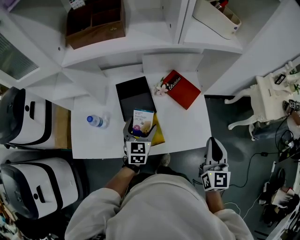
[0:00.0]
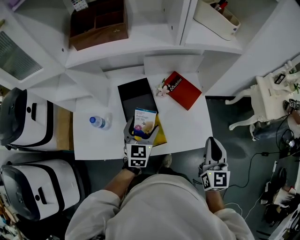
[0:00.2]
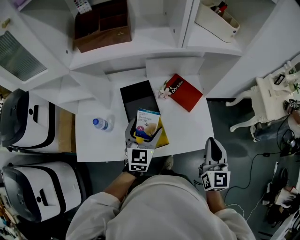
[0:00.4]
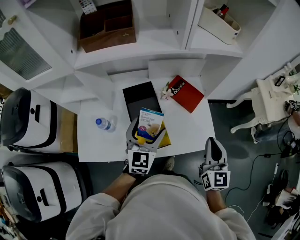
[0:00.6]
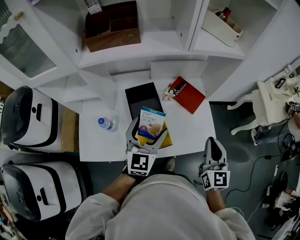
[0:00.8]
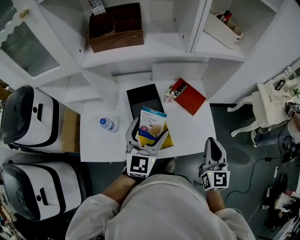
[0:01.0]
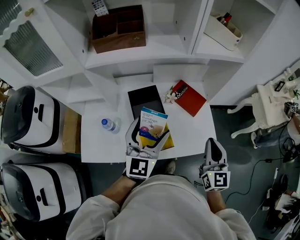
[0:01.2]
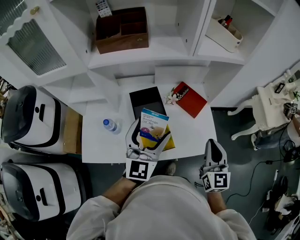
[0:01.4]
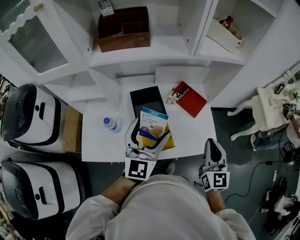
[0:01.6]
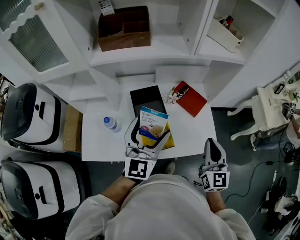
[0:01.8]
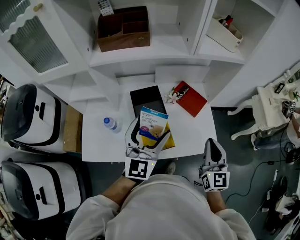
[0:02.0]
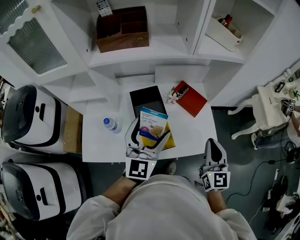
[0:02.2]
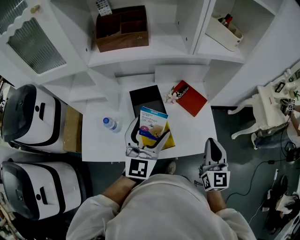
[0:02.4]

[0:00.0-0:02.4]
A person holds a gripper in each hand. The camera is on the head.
0:00.0 to 0:01.2: The left gripper is displaced upward by about 20 cm, and changes its angle by roughly 20 degrees, while the right gripper shifts about 5 cm to the left.
0:01.2 to 0:02.4: There are only small adjustments of the grippers.

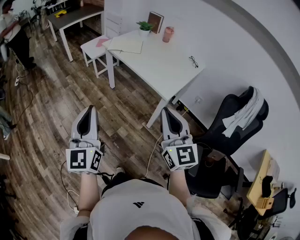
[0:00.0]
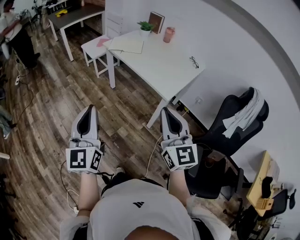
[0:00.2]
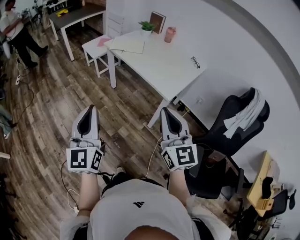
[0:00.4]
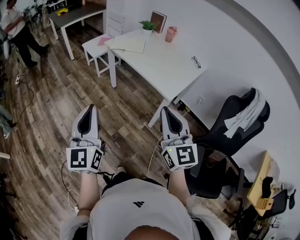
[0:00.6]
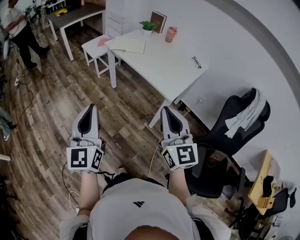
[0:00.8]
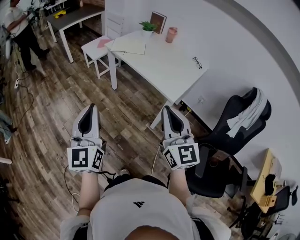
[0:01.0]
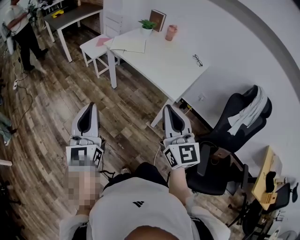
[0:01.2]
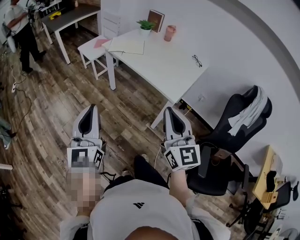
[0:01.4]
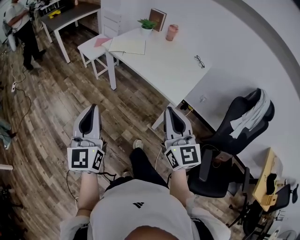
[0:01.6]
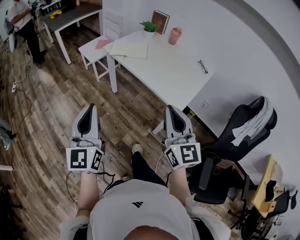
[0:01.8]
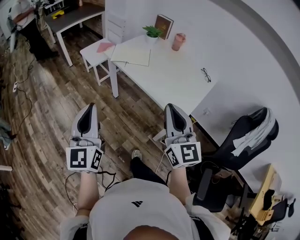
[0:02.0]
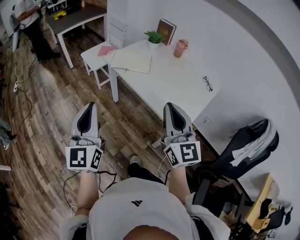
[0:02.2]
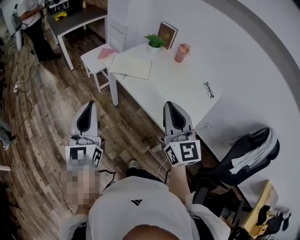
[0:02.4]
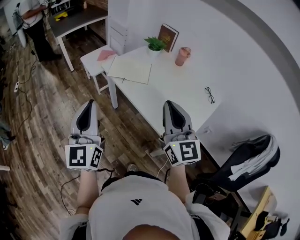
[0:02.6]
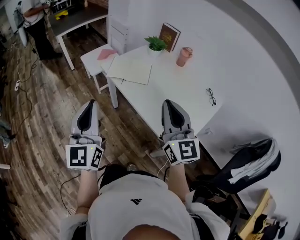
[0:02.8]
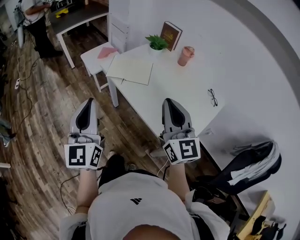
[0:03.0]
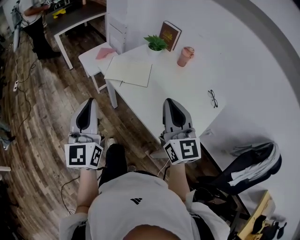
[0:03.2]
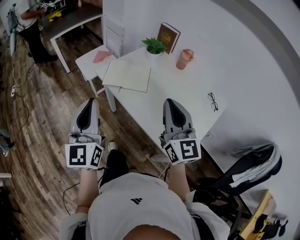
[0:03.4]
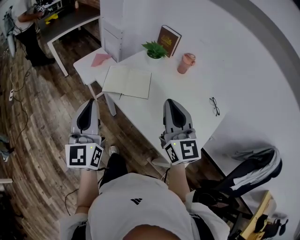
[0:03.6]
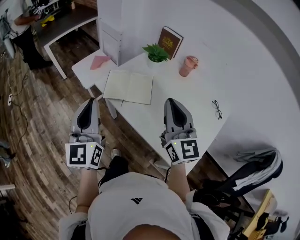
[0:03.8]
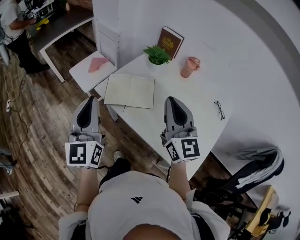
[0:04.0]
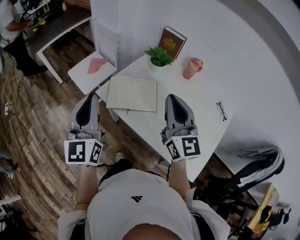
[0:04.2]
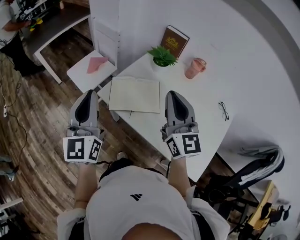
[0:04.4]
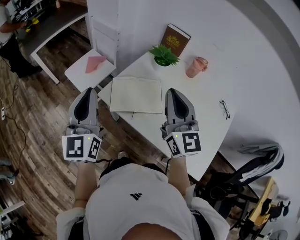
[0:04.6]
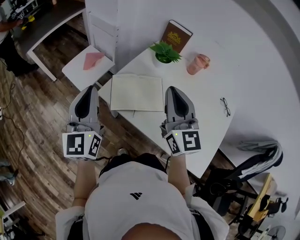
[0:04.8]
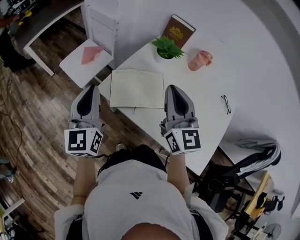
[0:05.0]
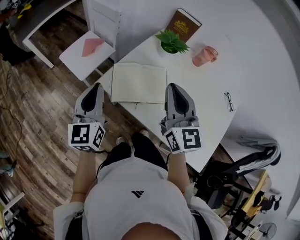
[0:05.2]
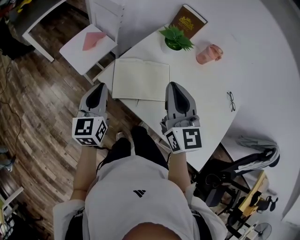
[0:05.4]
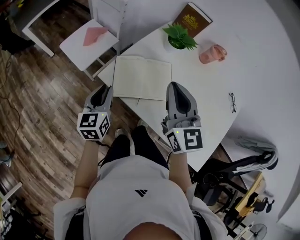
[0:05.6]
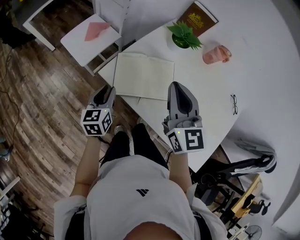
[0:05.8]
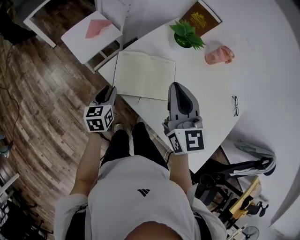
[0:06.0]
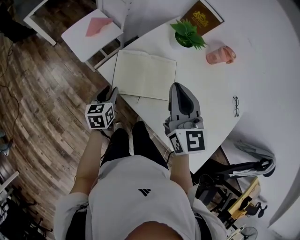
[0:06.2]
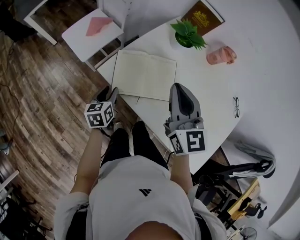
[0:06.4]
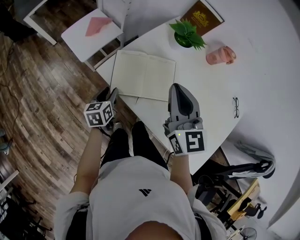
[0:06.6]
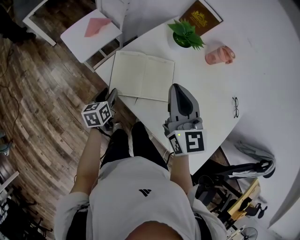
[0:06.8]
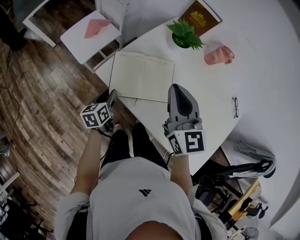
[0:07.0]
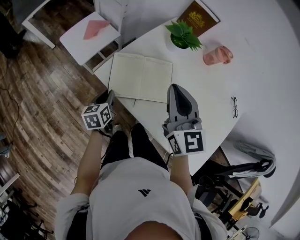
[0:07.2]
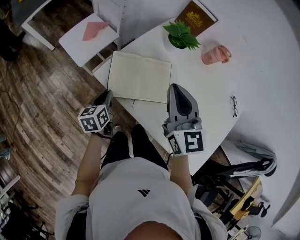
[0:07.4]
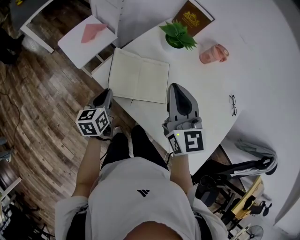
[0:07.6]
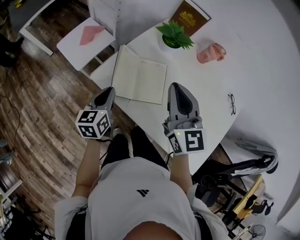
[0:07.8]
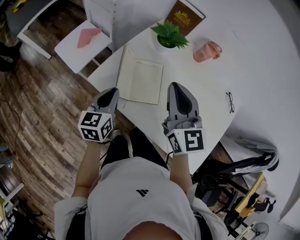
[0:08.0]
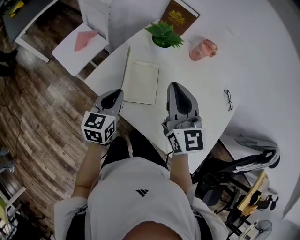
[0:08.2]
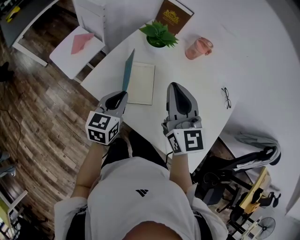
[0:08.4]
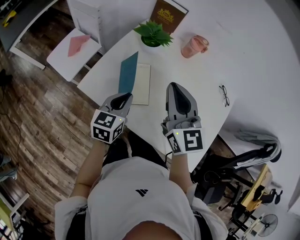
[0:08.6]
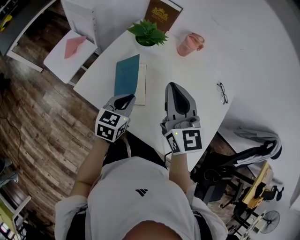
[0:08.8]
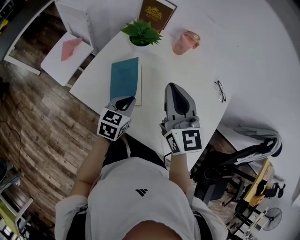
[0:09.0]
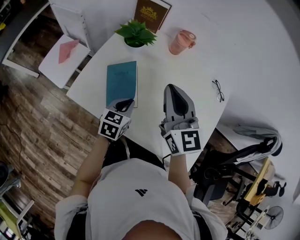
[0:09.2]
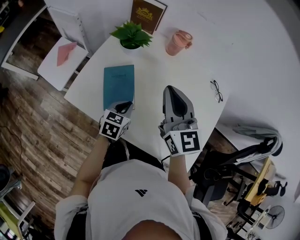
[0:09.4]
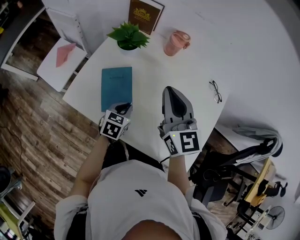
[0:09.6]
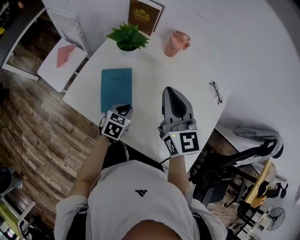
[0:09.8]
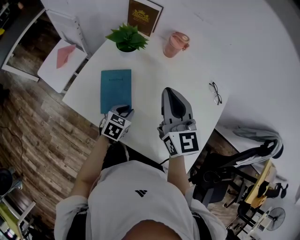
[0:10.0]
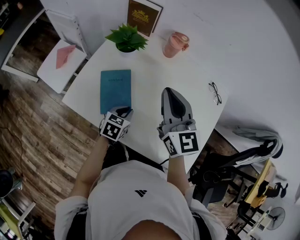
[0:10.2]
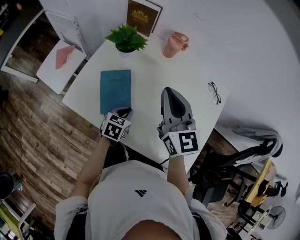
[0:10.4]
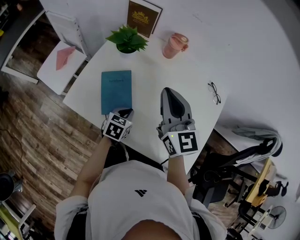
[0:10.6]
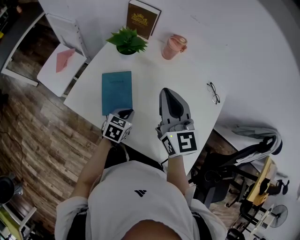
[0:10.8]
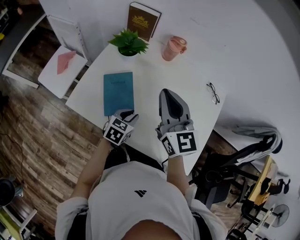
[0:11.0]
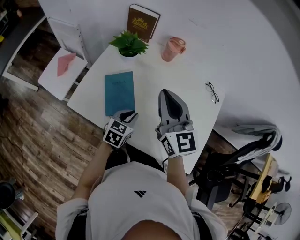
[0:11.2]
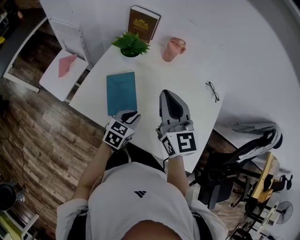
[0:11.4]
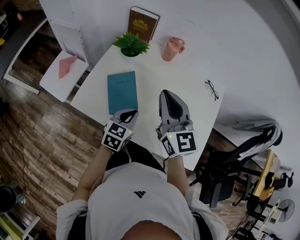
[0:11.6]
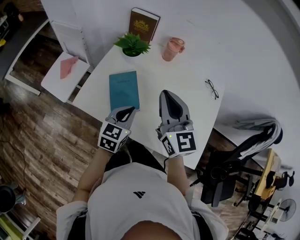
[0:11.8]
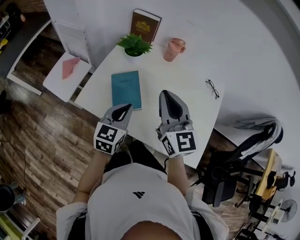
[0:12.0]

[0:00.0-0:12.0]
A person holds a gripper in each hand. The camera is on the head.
0:00.0 to 0:01.6: Both grippers travel together forward, approximately 10 cm.
0:01.6 to 0:03.0: Both grippers travel together forward, roughly 30 cm.
0:03.0 to 0:04.4: The two grippers go approximately 25 cm forward.
0:04.4 to 0:06.0: The right gripper is displaced downward and forward by about 10 cm, while the left gripper shifts about 30 cm downward, tips its fingers downward by some 40 degrees, and opens its fingers.
0:06.0 to 0:07.6: The left gripper goes downward and returns, roughly 5 cm each way, and closes its fingers.
0:07.6 to 0:09.0: The right gripper is displaced to the right by approximately 10 cm, while the left gripper shifts about 20 cm to the right, and turns by some 40 degrees.
0:09.0 to 0:10.4: The right gripper shifts by roughly 5 cm. Meanwhile the left gripper goes approximately 10 cm downward.
0:10.4 to 0:12.0: The left gripper goes approximately 15 cm upward, and swivels some 30 degrees, while the right gripper shifts some 10 cm backward.

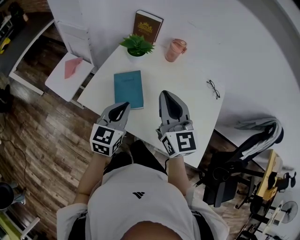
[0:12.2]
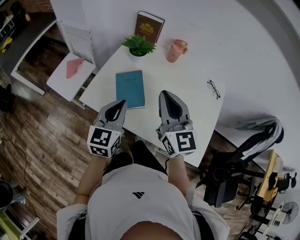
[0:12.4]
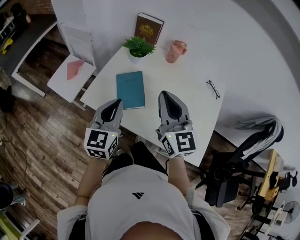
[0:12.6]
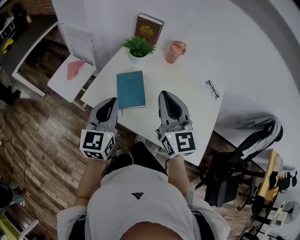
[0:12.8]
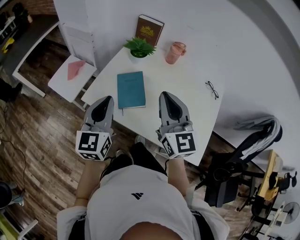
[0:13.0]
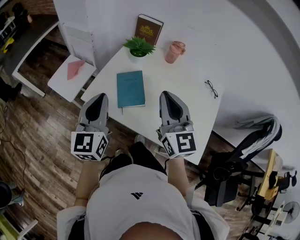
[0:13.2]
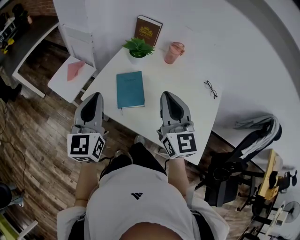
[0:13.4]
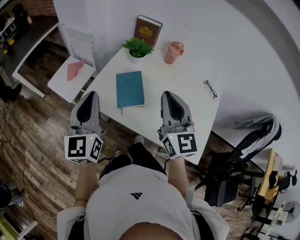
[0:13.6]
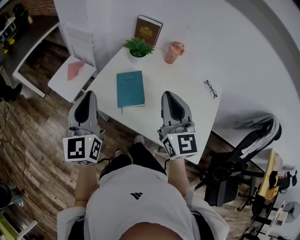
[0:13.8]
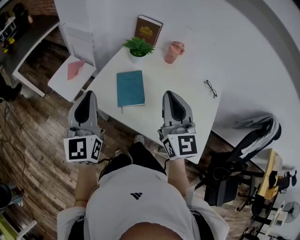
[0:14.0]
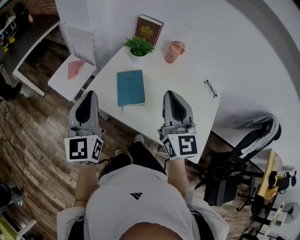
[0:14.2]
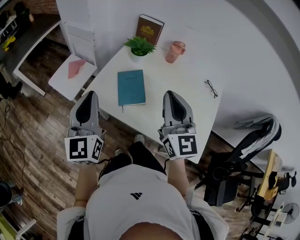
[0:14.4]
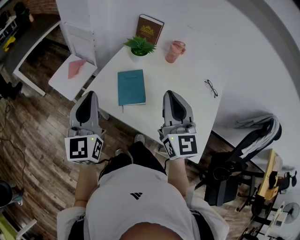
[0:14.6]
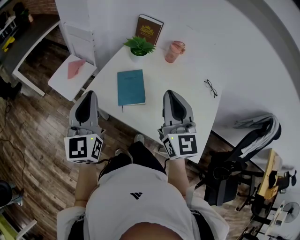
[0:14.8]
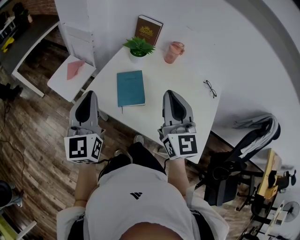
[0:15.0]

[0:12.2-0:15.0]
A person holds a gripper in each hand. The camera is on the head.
0:12.2 to 0:13.6: The right gripper moves roughly 5 cm. Meanwhile the left gripper shifts roughly 15 cm to the left and upward, and changes its angle by approximately 30 degrees.
0:13.6 to 0:15.0: The grippers stay close to where they were, moving slightly.

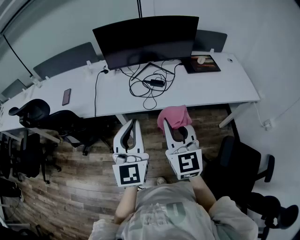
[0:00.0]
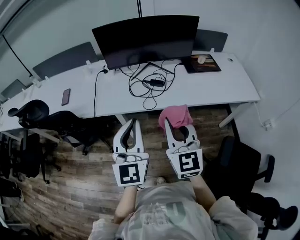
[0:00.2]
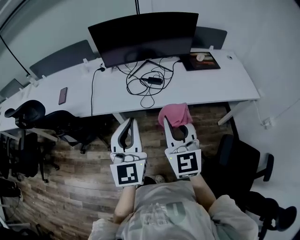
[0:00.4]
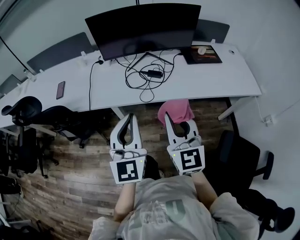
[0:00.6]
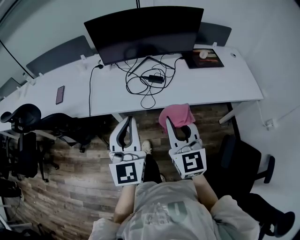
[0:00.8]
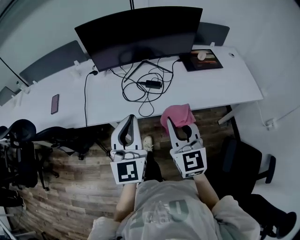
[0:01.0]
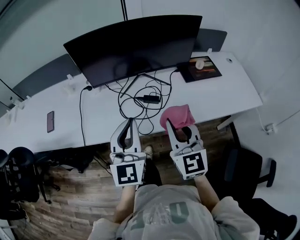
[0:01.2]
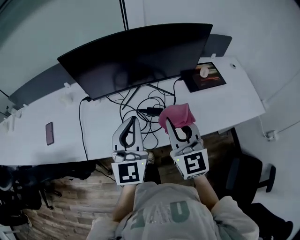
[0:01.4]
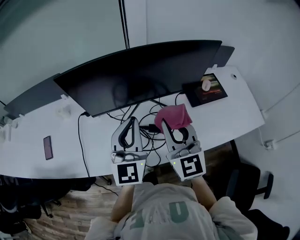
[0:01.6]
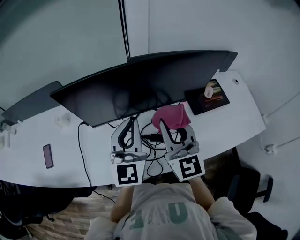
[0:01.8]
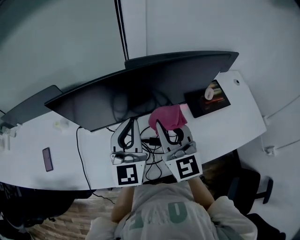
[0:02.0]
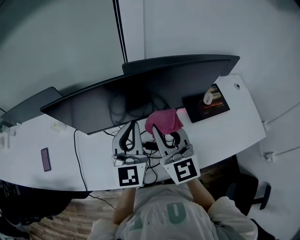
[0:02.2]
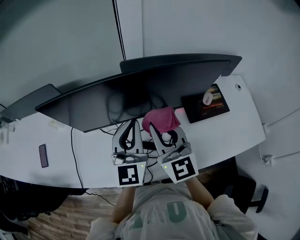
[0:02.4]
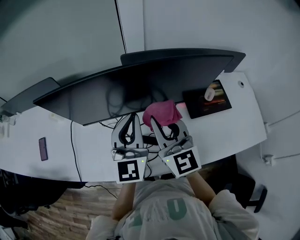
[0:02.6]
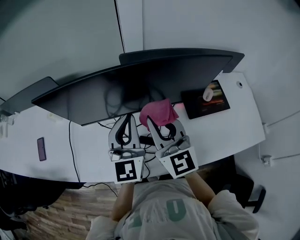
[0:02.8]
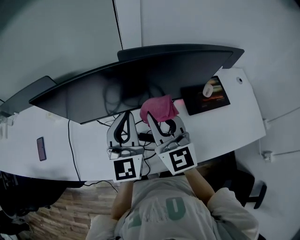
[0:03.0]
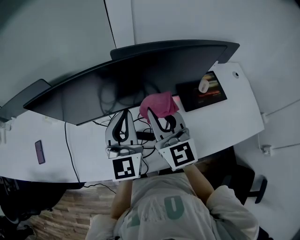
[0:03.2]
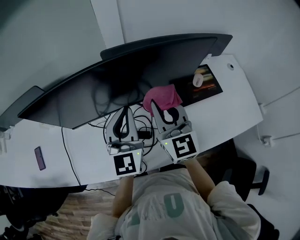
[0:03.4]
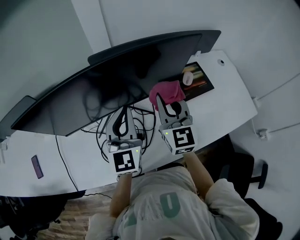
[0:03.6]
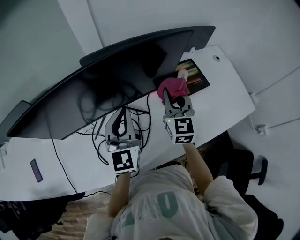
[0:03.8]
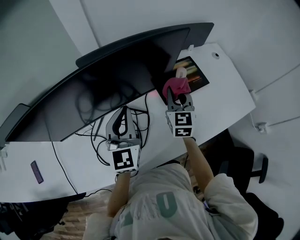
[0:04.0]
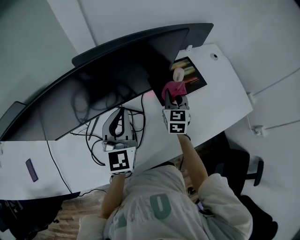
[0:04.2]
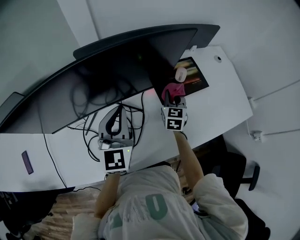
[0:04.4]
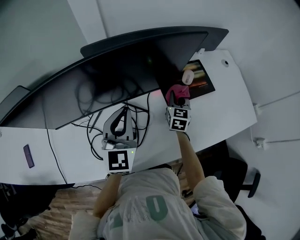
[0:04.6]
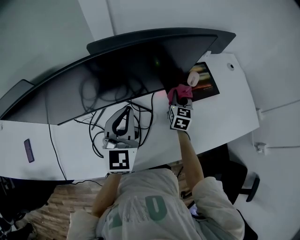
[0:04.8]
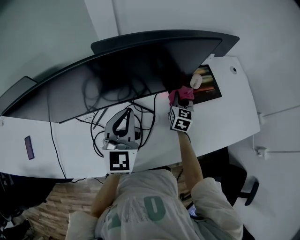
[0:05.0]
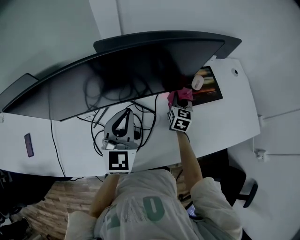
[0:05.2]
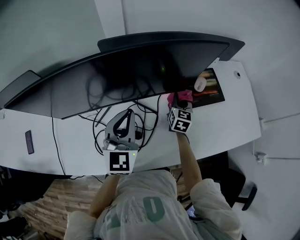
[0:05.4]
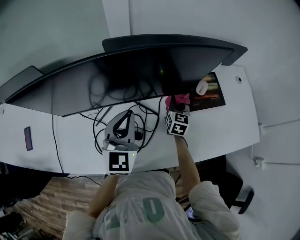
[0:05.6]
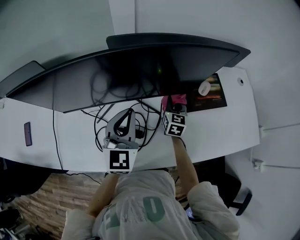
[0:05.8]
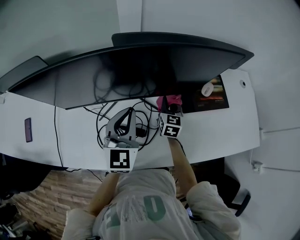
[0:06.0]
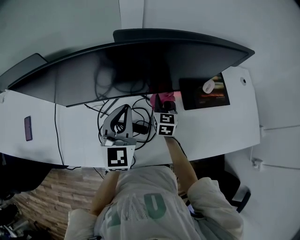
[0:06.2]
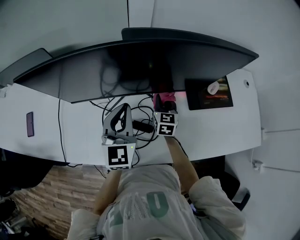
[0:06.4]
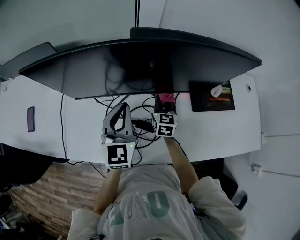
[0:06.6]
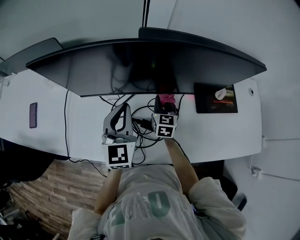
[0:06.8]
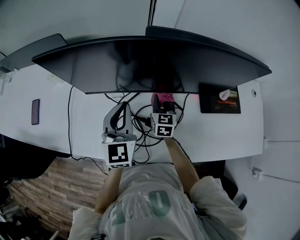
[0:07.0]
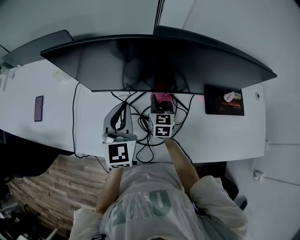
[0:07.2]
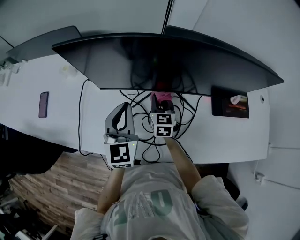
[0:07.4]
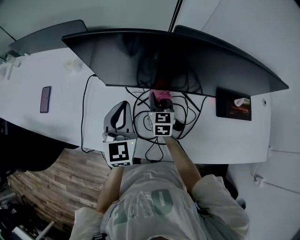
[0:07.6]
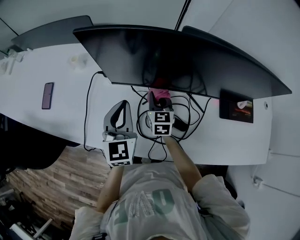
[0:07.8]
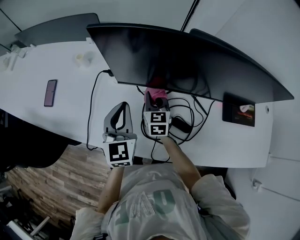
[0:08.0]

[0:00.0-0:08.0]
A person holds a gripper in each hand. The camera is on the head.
0:00.0 to 0:01.6: Both grippers move forward, about 35 cm.
0:01.6 to 0:03.2: The left gripper shifts some 10 cm forward and to the right. The right gripper travels forward by roughly 10 cm.
0:03.2 to 0:04.8: The right gripper shifts approximately 35 cm downward, to the right and forward, and rotates some 40 degrees; the left gripper shifts some 10 cm to the right and downward.
0:04.8 to 0:06.4: The right gripper goes some 20 cm to the left; the left gripper moves to the left, approximately 10 cm.
0:06.4 to 0:08.0: The two grippers go roughly 25 cm to the left. The right gripper turns by about 20 degrees.
